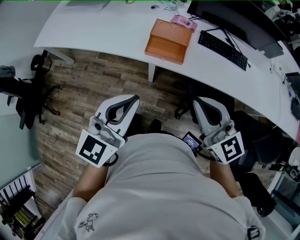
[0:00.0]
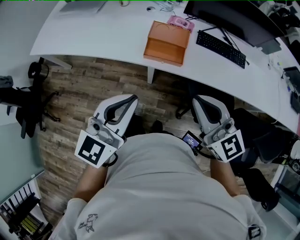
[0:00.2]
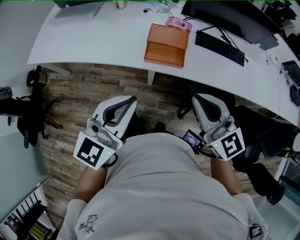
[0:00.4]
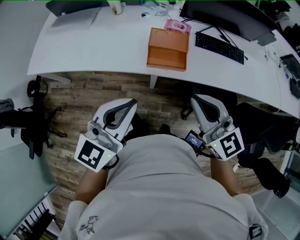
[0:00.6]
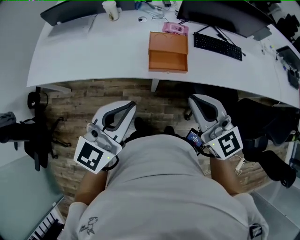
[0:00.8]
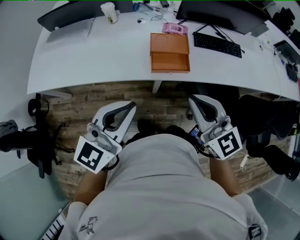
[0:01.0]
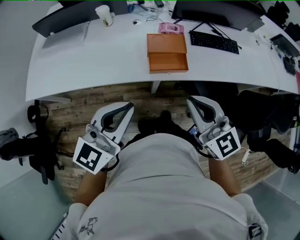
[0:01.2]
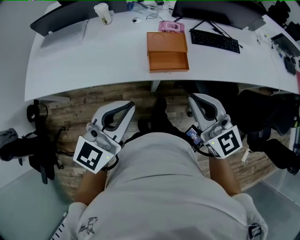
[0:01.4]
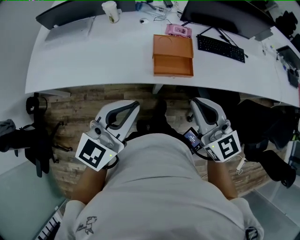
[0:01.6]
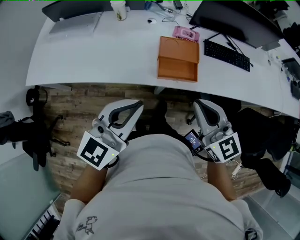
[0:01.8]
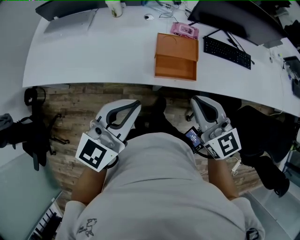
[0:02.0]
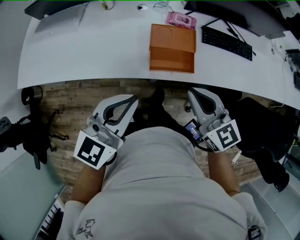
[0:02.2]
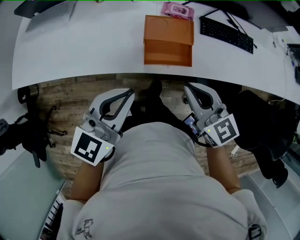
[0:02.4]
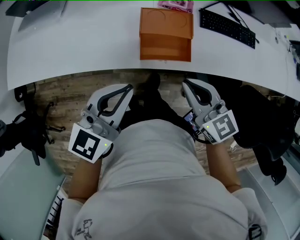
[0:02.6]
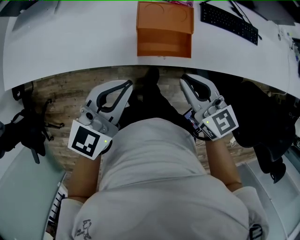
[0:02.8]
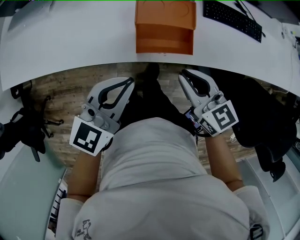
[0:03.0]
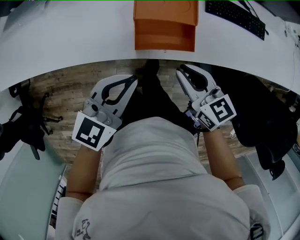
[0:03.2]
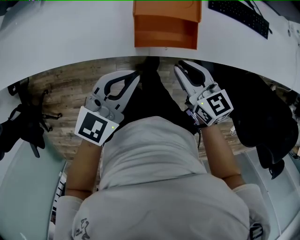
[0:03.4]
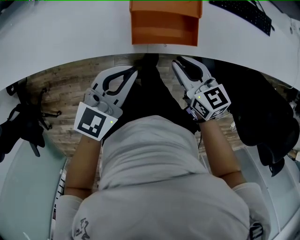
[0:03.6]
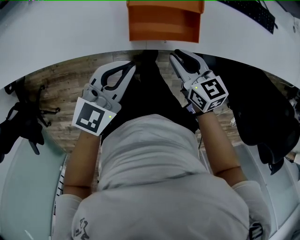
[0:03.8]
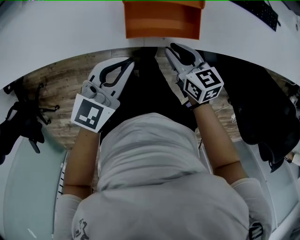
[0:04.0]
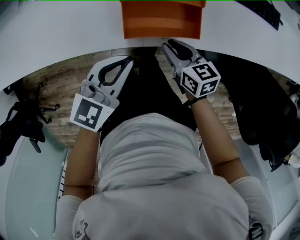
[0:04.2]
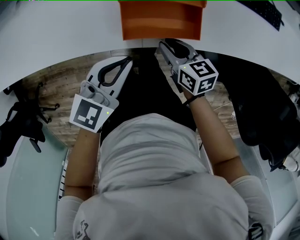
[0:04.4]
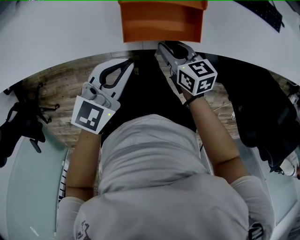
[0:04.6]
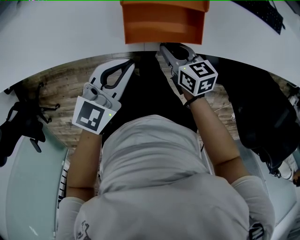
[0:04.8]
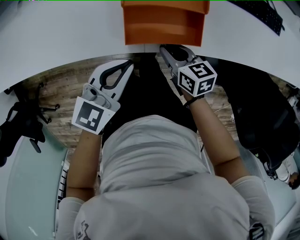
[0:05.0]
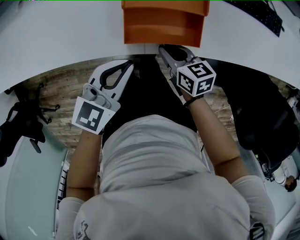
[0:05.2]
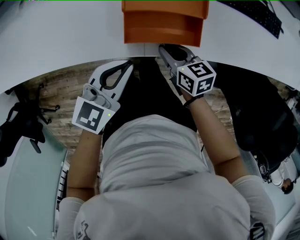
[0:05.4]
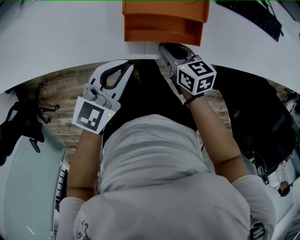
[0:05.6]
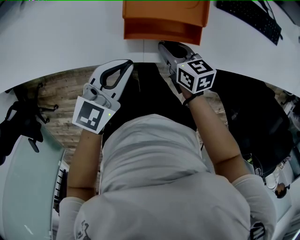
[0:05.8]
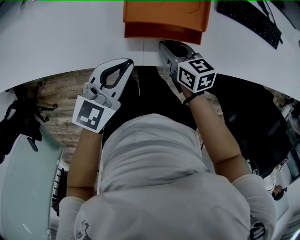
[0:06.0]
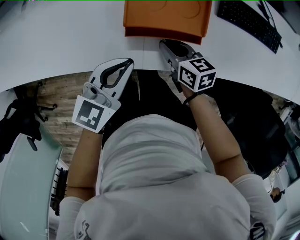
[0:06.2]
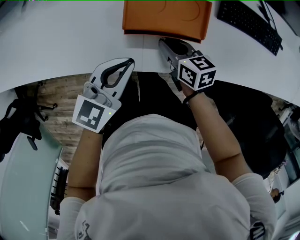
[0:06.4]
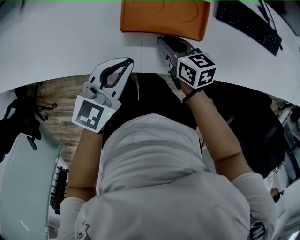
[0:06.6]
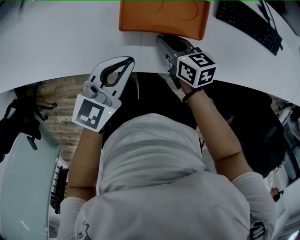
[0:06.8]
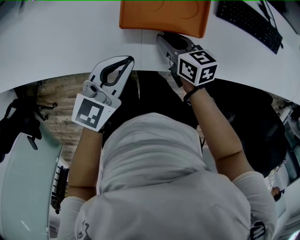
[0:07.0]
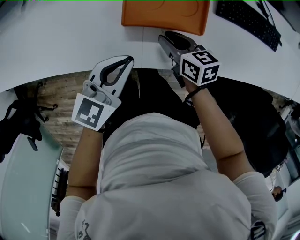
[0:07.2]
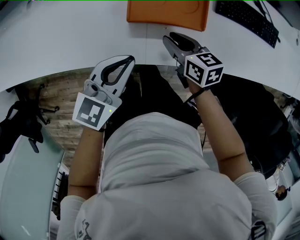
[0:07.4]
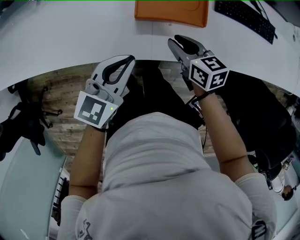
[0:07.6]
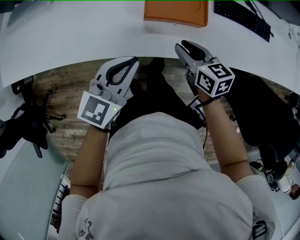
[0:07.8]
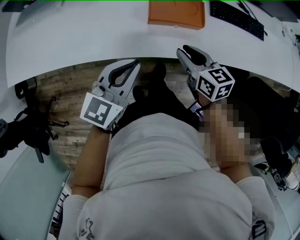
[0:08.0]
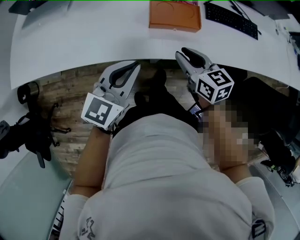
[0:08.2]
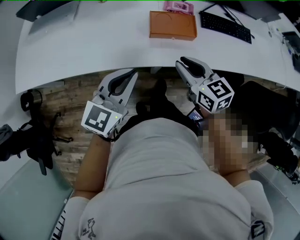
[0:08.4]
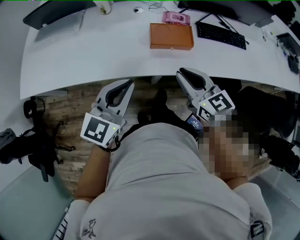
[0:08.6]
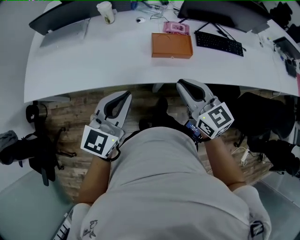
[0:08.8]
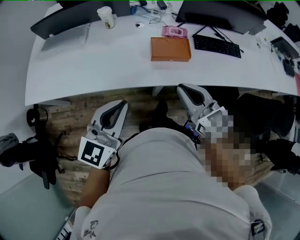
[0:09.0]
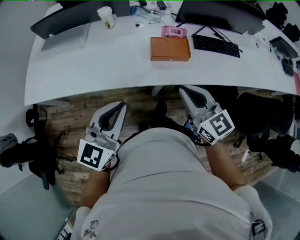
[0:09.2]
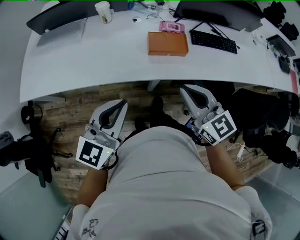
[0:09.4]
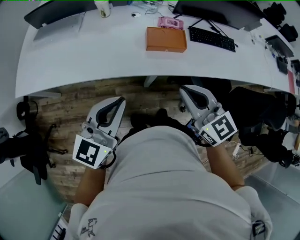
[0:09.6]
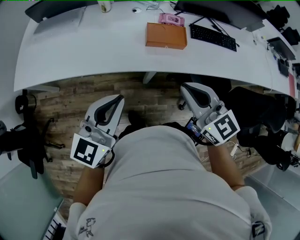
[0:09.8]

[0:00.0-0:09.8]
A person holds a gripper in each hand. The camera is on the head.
0:00.0 to 0:01.4: Both grippers travel together to the left and forward, some 20 cm. The left gripper rotates about 20 degrees.
0:01.4 to 0:02.8: Both grippers travel together downward and forward, approximately 20 cm. The right gripper changes its angle by about 20 degrees.
0:02.8 to 0:04.2: Both grippers move downward, some 20 cm. The right gripper turns by about 30 degrees.
0:04.2 to 0:05.6: The right gripper changes place by about 5 cm.
0:05.6 to 0:07.0: Both grippers travel together forward, about 5 cm.
0:07.0 to 0:08.4: The right gripper moves upward and backward, about 35 cm, and changes its angle by some 30 degrees; the left gripper travels upward, backward and to the left by roughly 30 cm, and changes its angle by some 20 degrees.
0:08.4 to 0:09.8: The two grippers go about 20 cm upward and backward. The right gripper closes its fingers.

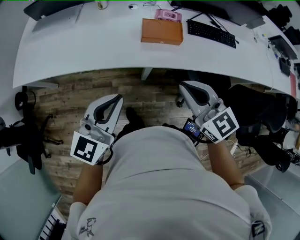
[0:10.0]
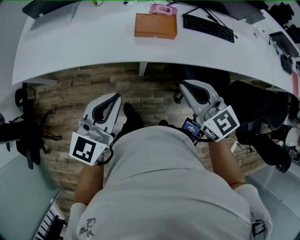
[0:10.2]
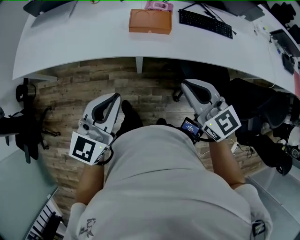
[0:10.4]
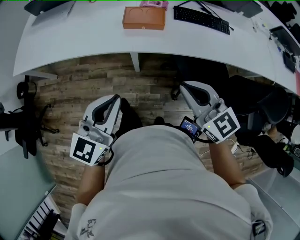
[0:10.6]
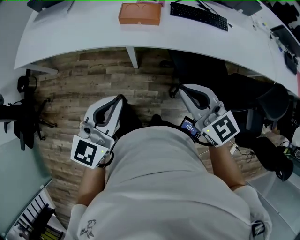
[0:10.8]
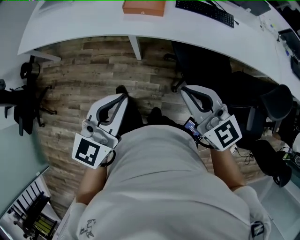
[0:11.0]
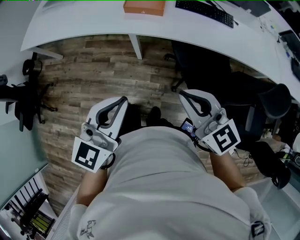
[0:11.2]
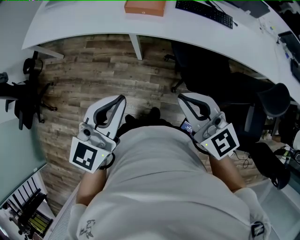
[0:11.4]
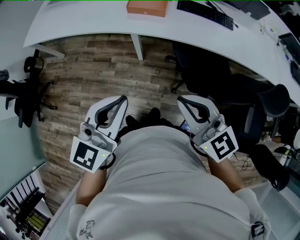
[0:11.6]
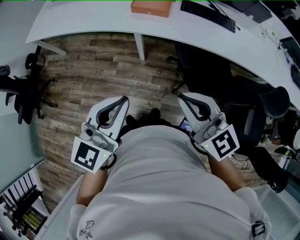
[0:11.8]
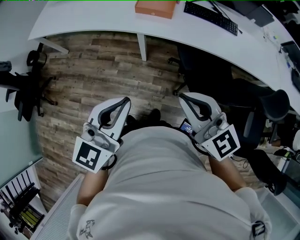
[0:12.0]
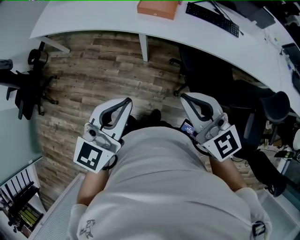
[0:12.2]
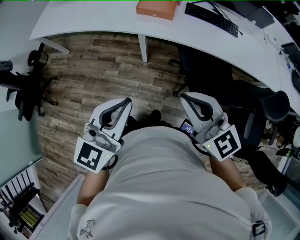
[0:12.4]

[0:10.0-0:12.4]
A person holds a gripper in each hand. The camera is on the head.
0:10.0 to 0:11.2: Both grippers move backward and to the right, roughly 35 cm.
0:11.2 to 0:12.4: The right gripper moves approximately 5 cm.

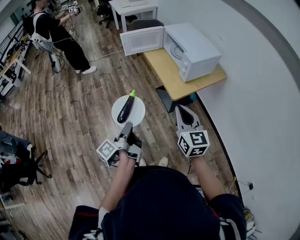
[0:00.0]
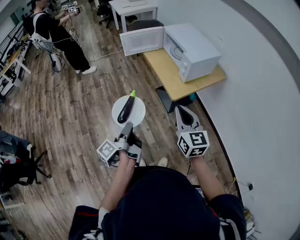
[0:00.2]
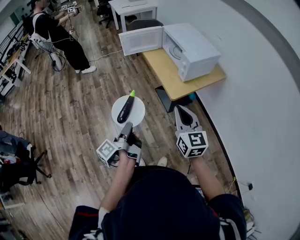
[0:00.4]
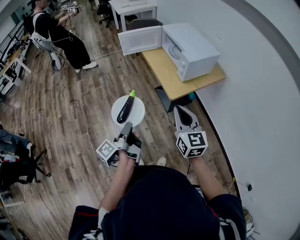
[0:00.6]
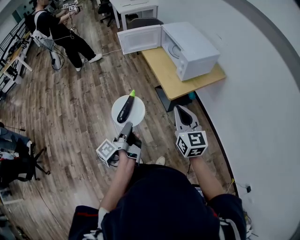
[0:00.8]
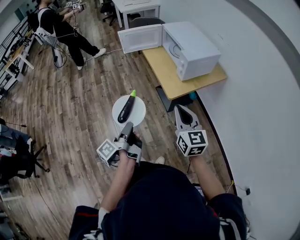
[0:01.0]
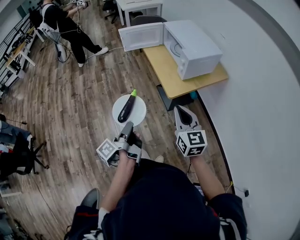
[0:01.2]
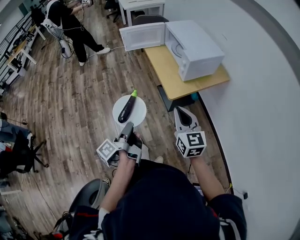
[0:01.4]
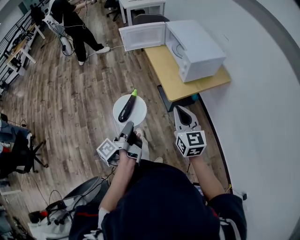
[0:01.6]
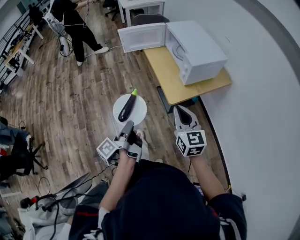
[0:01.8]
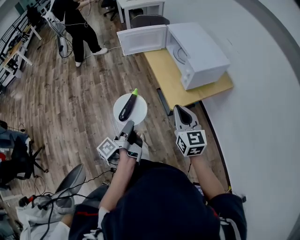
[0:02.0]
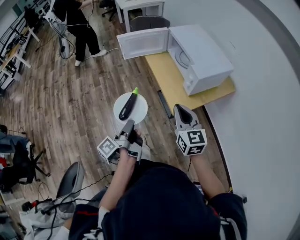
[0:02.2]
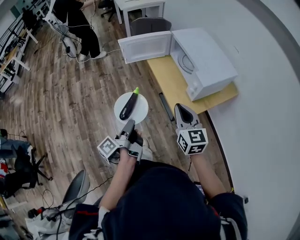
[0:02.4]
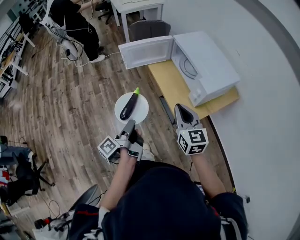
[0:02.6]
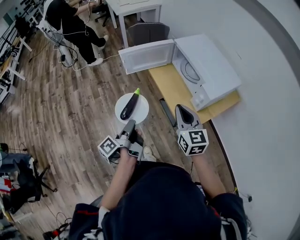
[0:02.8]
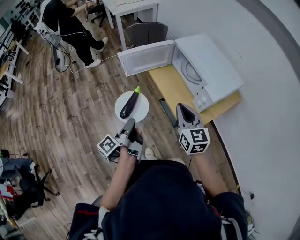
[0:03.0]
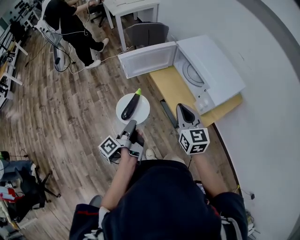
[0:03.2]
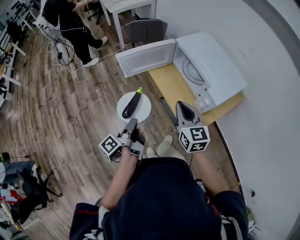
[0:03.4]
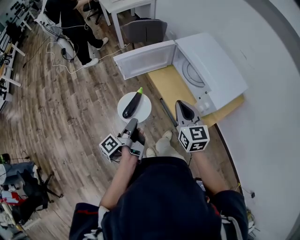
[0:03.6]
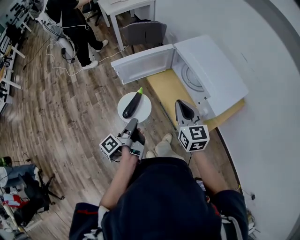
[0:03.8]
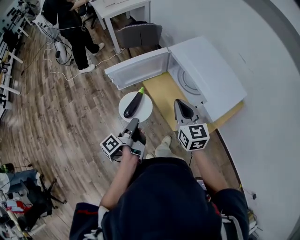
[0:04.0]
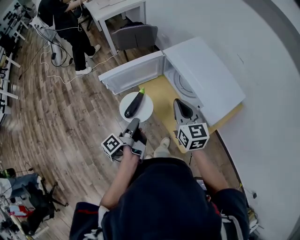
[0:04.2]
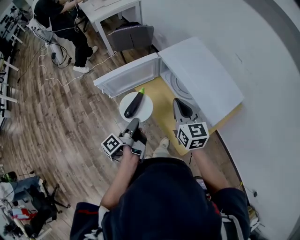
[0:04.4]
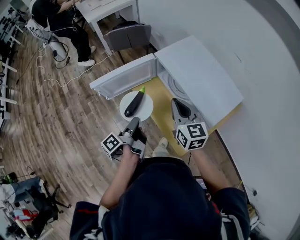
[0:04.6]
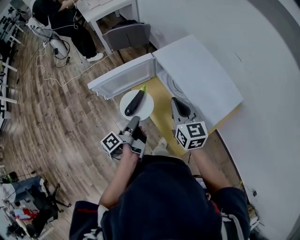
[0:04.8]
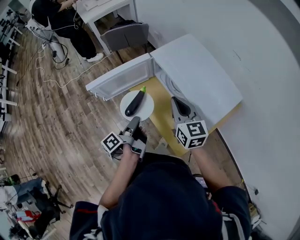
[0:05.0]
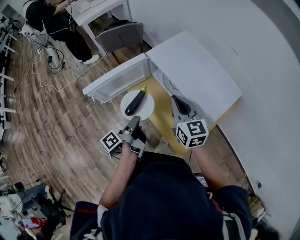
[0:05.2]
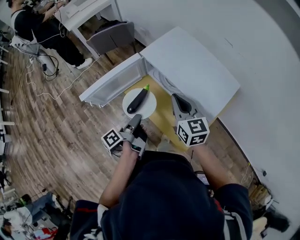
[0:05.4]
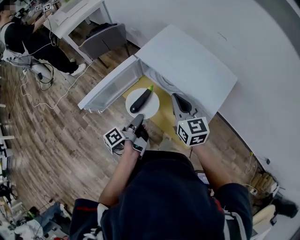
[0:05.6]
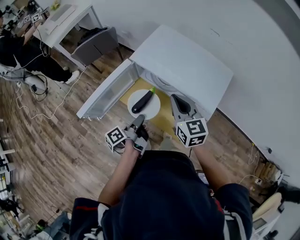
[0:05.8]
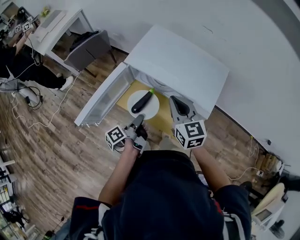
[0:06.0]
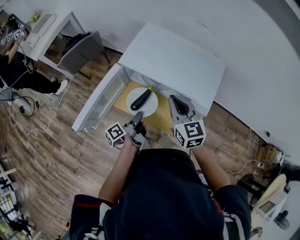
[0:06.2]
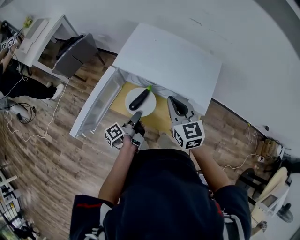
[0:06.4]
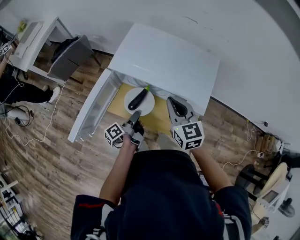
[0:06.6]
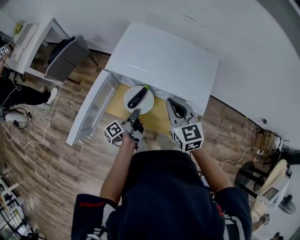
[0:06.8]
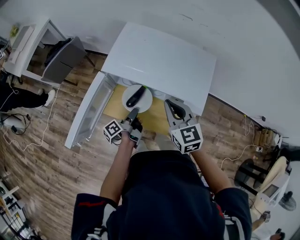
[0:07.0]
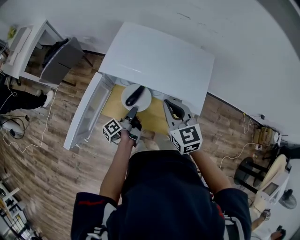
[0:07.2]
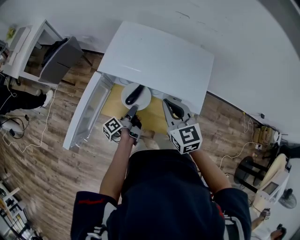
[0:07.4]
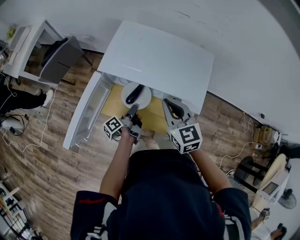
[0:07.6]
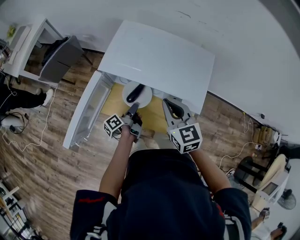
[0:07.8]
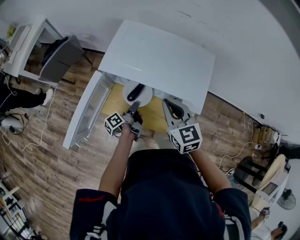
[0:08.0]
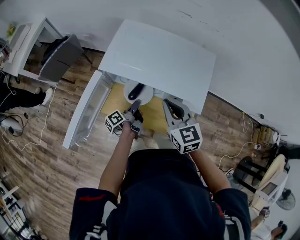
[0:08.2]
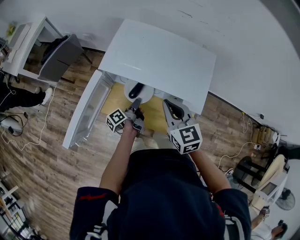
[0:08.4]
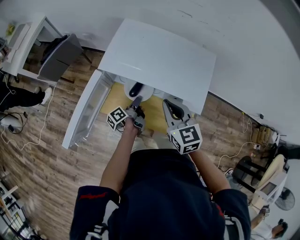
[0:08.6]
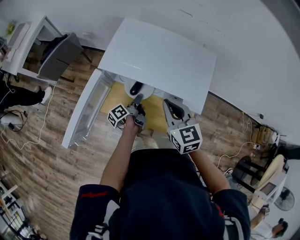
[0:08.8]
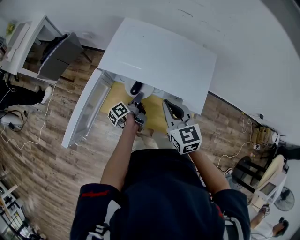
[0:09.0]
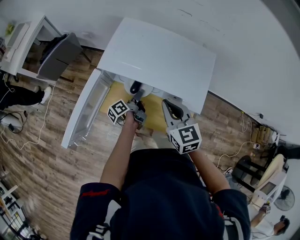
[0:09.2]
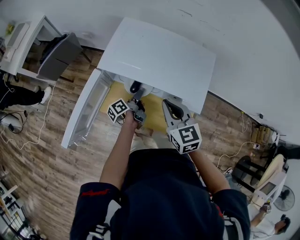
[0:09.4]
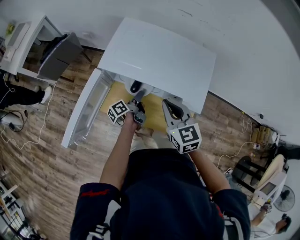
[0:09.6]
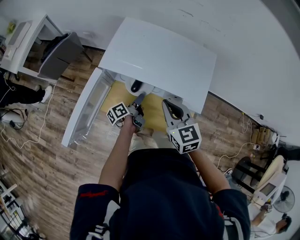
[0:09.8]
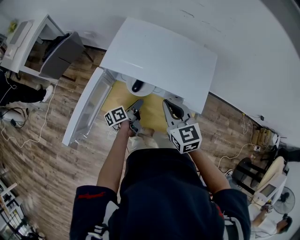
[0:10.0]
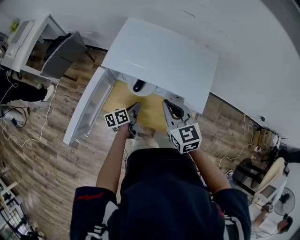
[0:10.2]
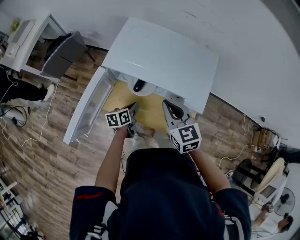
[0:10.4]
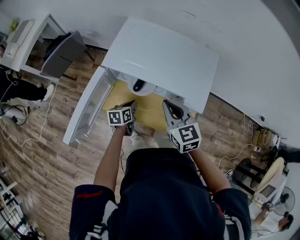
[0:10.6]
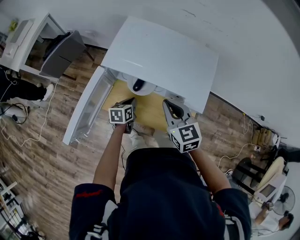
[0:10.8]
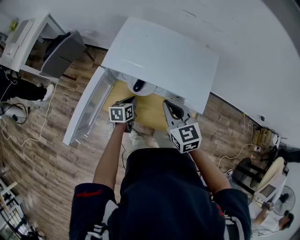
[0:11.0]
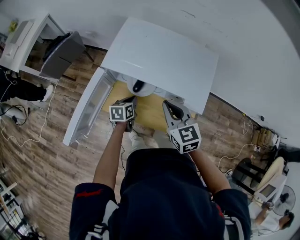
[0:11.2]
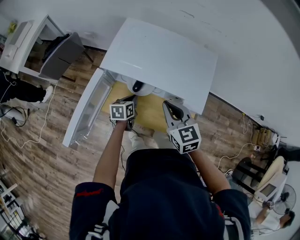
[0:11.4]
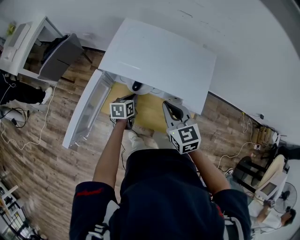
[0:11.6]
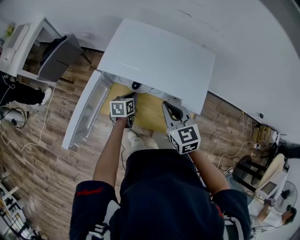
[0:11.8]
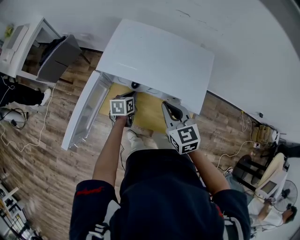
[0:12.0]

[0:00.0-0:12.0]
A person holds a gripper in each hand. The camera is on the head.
0:00.0 to 0:01.6: The right gripper changes place by roughly 10 cm.
0:01.6 to 0:03.0: The right gripper moves about 30 cm.
0:03.0 to 0:04.4: The right gripper shifts by about 15 cm.
0:04.4 to 0:06.0: The right gripper changes place by roughly 10 cm, and swivels approximately 20 degrees.
